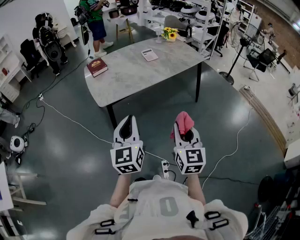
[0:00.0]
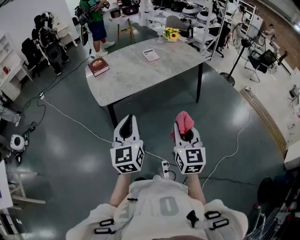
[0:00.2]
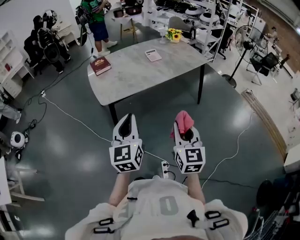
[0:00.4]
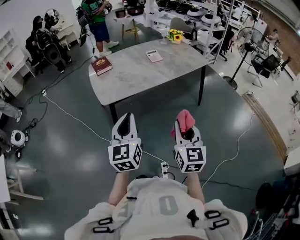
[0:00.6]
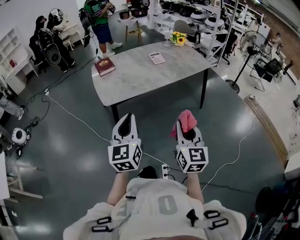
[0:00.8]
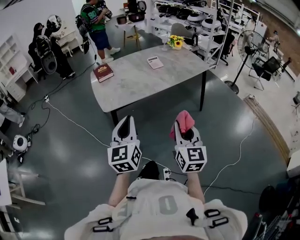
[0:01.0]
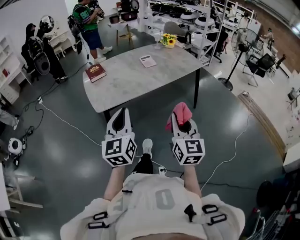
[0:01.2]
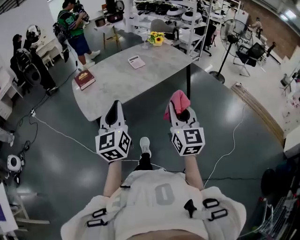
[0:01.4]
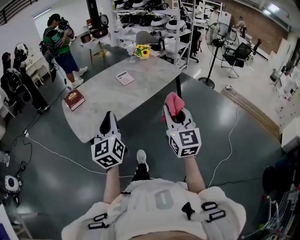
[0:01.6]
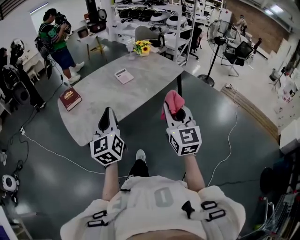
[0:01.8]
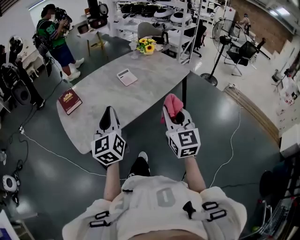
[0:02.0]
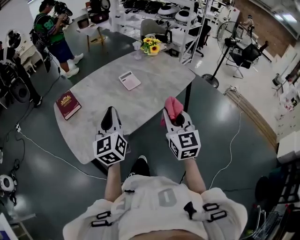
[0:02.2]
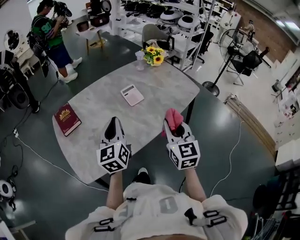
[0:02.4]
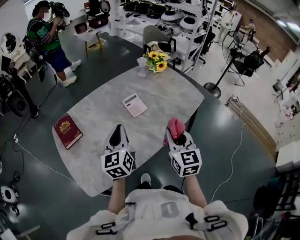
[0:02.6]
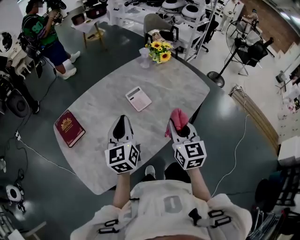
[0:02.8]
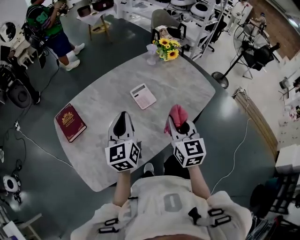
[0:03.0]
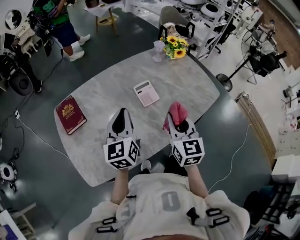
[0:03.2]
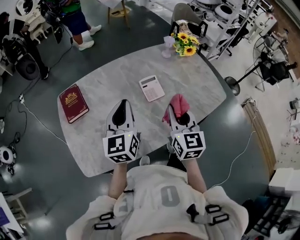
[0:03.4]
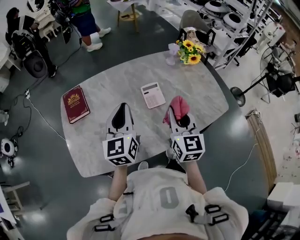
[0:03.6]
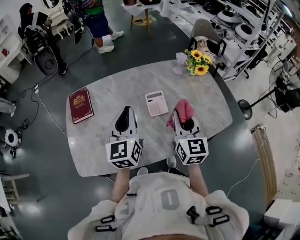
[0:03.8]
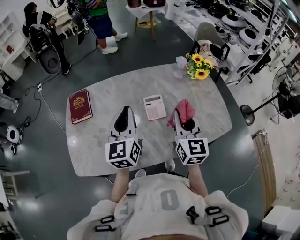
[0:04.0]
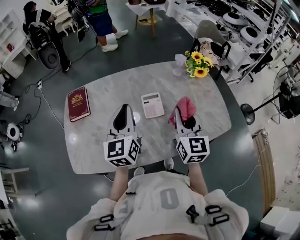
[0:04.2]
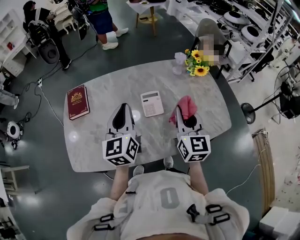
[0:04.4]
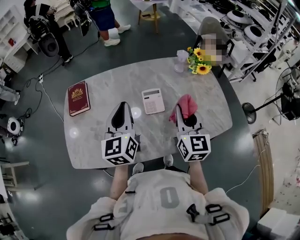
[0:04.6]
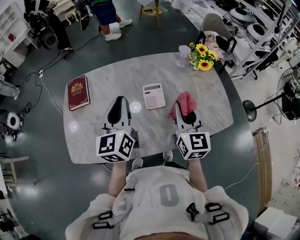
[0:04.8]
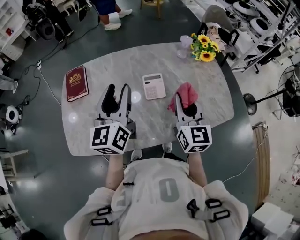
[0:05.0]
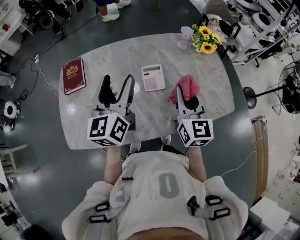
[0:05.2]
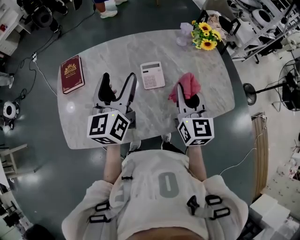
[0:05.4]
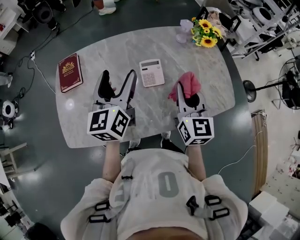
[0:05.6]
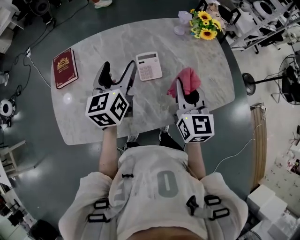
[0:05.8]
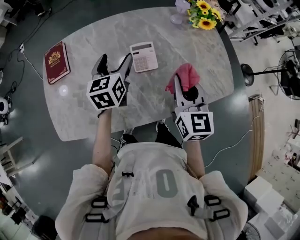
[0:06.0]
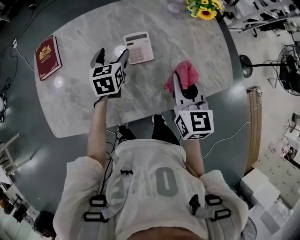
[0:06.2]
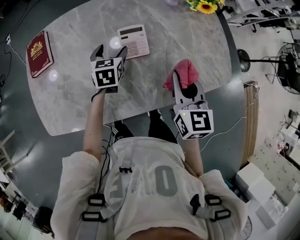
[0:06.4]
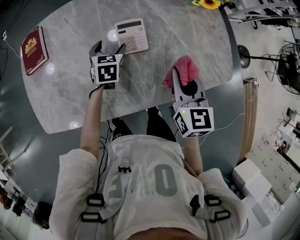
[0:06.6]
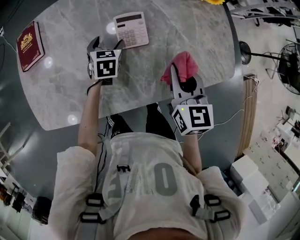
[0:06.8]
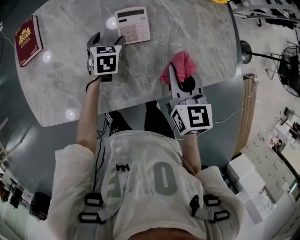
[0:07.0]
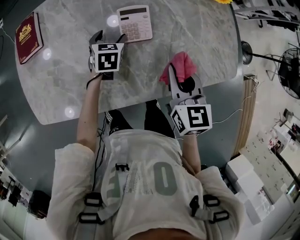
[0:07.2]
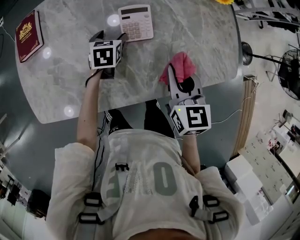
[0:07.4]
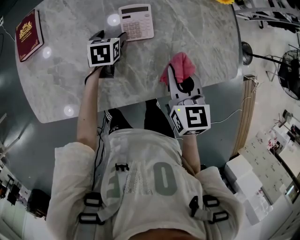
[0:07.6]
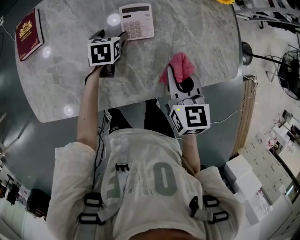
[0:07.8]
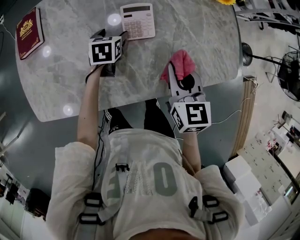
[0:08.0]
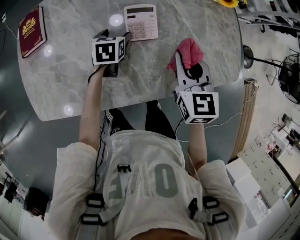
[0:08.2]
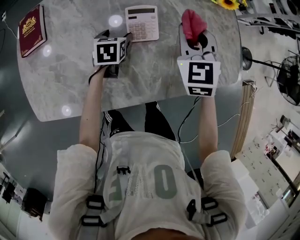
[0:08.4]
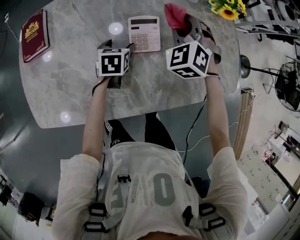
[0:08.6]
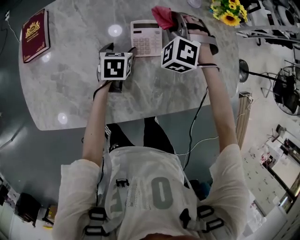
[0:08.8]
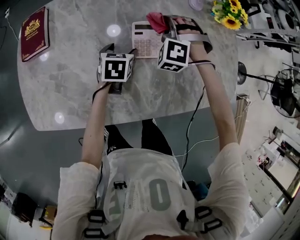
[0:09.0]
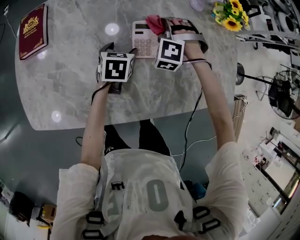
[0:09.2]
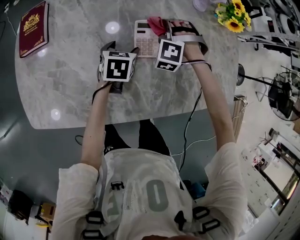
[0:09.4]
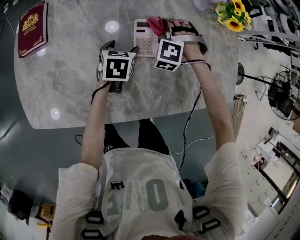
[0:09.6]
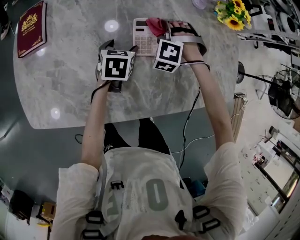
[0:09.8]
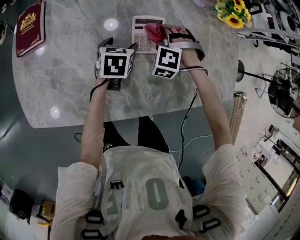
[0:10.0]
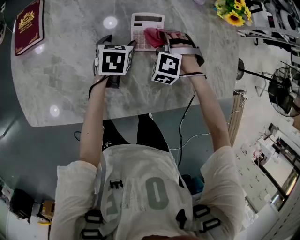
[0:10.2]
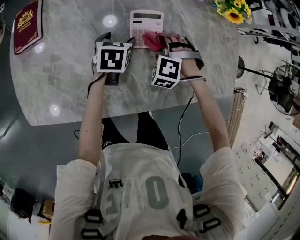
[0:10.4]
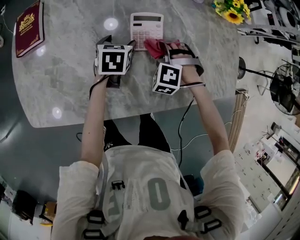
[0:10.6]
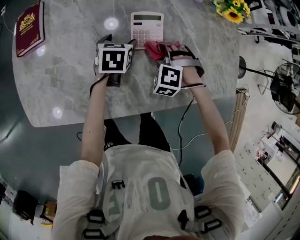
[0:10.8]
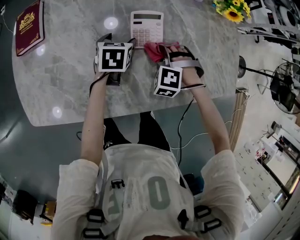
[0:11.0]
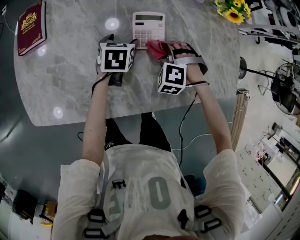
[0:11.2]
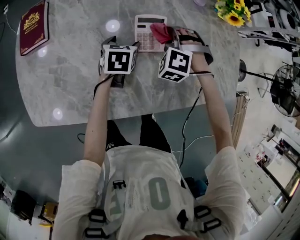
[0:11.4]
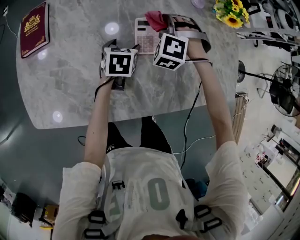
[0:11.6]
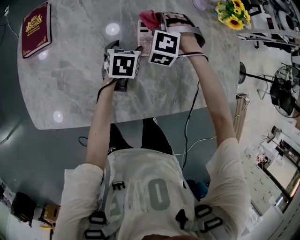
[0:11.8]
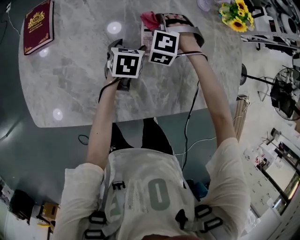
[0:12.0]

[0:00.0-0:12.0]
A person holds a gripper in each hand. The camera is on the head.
0:00.0 to 0:01.6: The right gripper is displaced forward and upward by roughly 15 cm. Meanwhile the left gripper travels forward by some 15 cm.
0:01.6 to 0:03.0: The pair of grippers is taken forward, approximately 50 cm. The right gripper changes its angle by about 20 degrees.
0:03.0 to 0:04.4: The left gripper heads to the right, covering approximately 5 cm, and swivels approximately 20 degrees. The right gripper shifts about 15 cm forward and to the right.
0:04.4 to 0:06.0: The left gripper travels downward and forward by some 15 cm, turns by approximately 20 degrees, and opens up. The right gripper moves downward, roughly 5 cm.
0:06.0 to 0:07.6: The right gripper goes approximately 10 cm downward. Meanwhile the left gripper shifts about 20 cm downward, and turns by about 30 degrees.
0:07.6 to 0:09.0: The right gripper moves forward and to the left, roughly 25 cm, and rotates around the line of its fingers by about 90 degrees, counterclockwise from behind.
0:09.0 to 0:10.4: The right gripper is displaced backward and downward by some 10 cm.
0:10.4 to 0:12.0: The right gripper shifts roughly 10 cm forward and to the left.

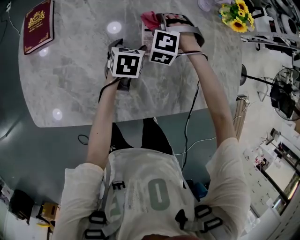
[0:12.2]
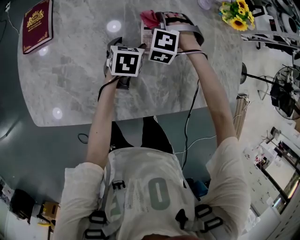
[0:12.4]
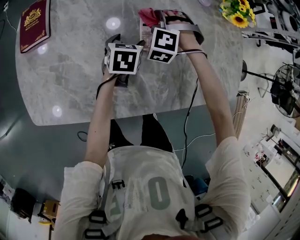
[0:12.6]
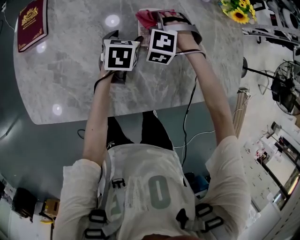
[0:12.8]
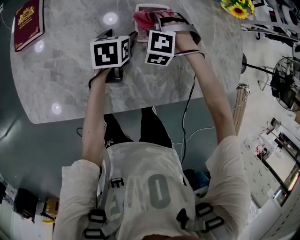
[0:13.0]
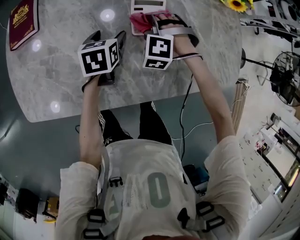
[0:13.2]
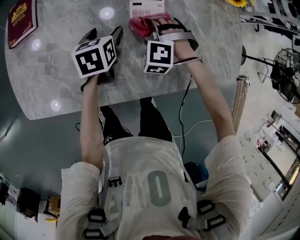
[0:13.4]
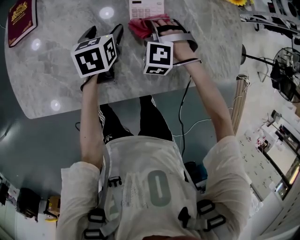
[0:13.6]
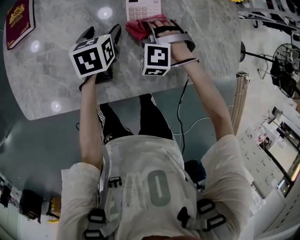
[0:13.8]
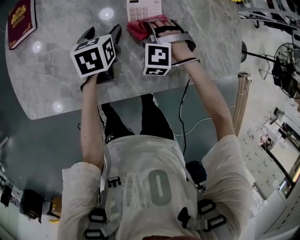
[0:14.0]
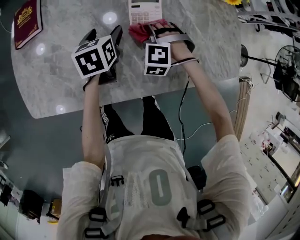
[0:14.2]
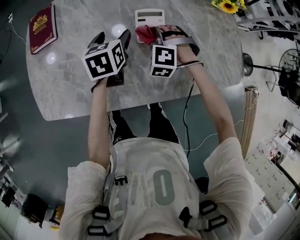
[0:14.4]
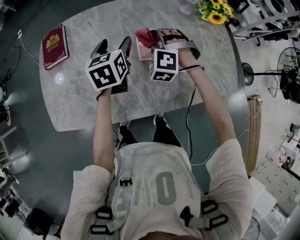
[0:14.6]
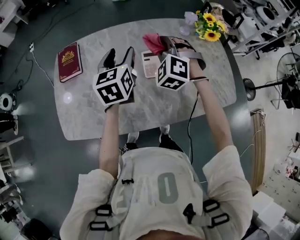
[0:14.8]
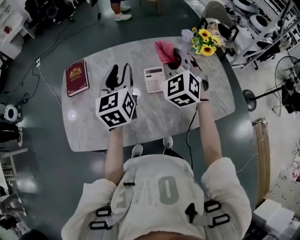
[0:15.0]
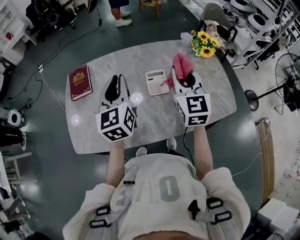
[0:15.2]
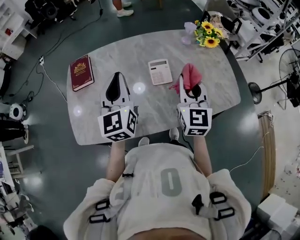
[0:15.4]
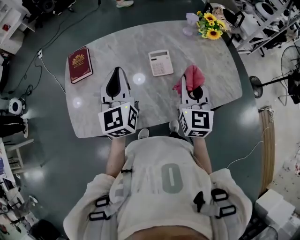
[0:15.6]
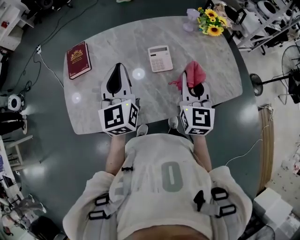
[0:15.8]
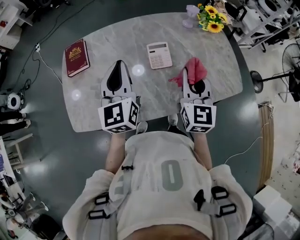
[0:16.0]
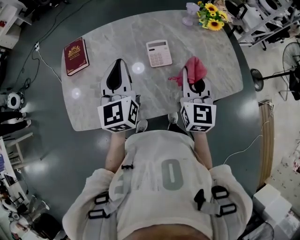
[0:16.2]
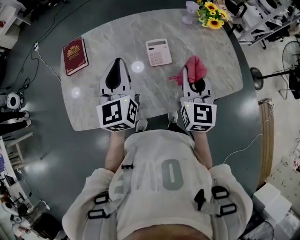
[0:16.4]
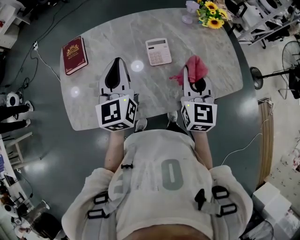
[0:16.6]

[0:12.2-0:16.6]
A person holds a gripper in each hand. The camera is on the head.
0:12.2 to 0:13.6: The right gripper travels backward by about 10 cm. The left gripper changes place by roughly 5 cm.
0:13.6 to 0:15.2: The two grippers go some 35 cm upward. The left gripper angles its fingers upward, by approximately 40 degrees, and closes its fingers, while the right gripper rotates around the line of its fingers by some 70 degrees, clockwise from behind.
0:15.2 to 0:16.6: The right gripper heads downward and backward, covering roughly 10 cm.

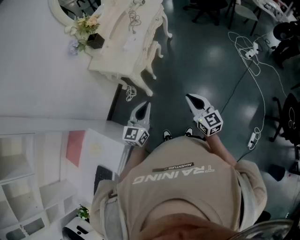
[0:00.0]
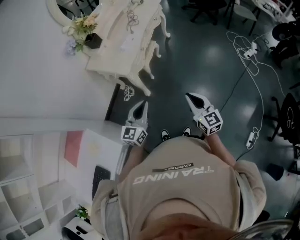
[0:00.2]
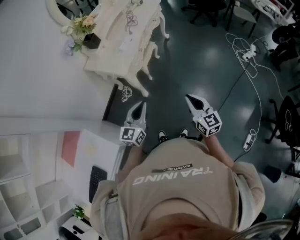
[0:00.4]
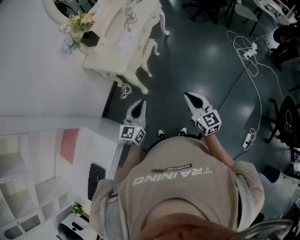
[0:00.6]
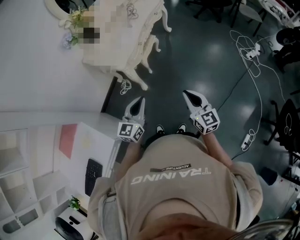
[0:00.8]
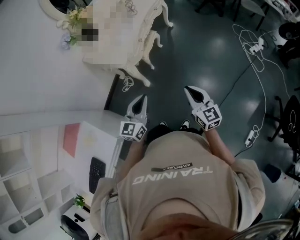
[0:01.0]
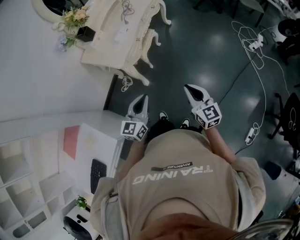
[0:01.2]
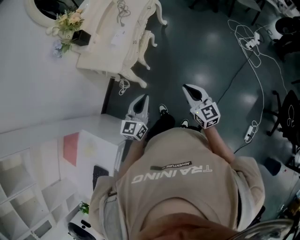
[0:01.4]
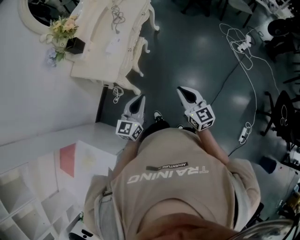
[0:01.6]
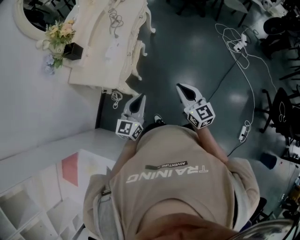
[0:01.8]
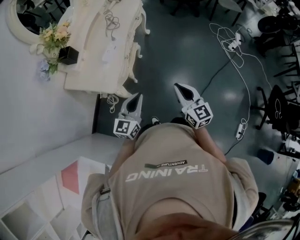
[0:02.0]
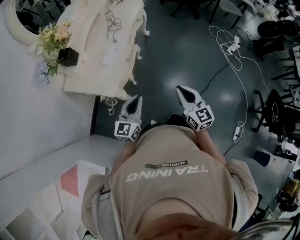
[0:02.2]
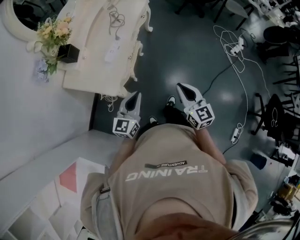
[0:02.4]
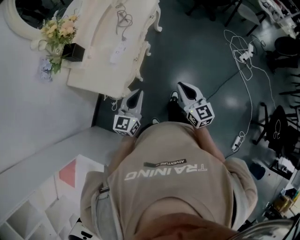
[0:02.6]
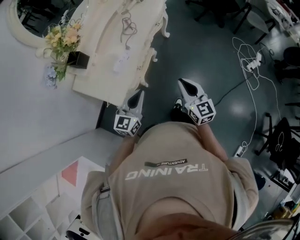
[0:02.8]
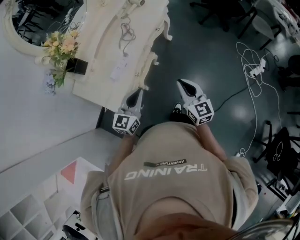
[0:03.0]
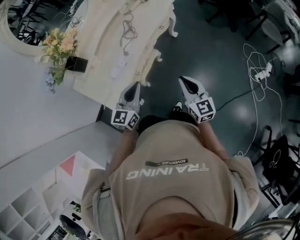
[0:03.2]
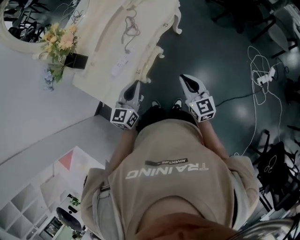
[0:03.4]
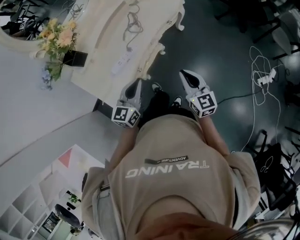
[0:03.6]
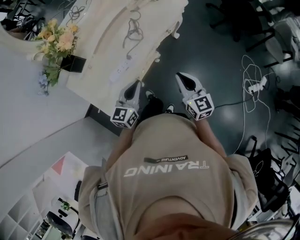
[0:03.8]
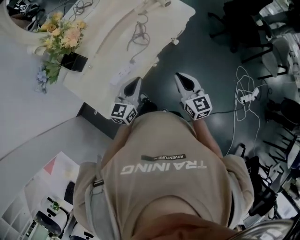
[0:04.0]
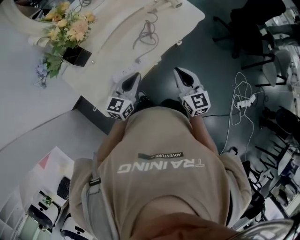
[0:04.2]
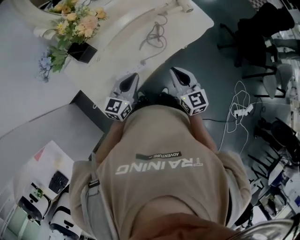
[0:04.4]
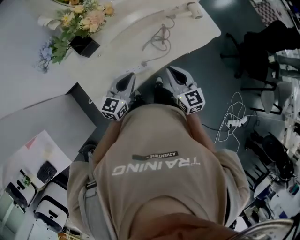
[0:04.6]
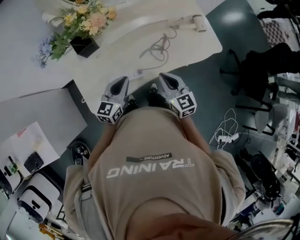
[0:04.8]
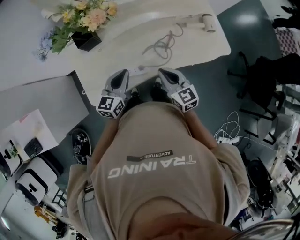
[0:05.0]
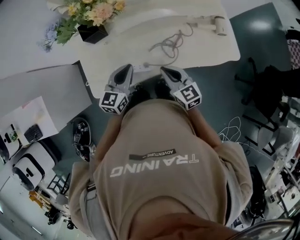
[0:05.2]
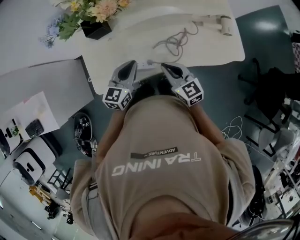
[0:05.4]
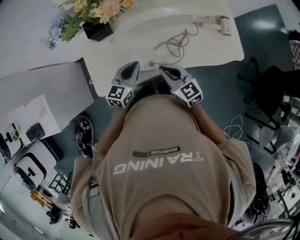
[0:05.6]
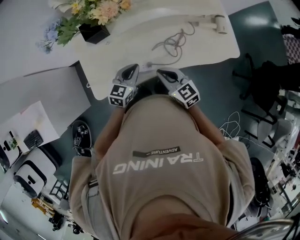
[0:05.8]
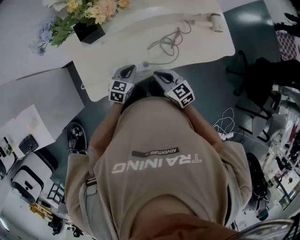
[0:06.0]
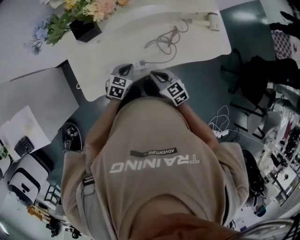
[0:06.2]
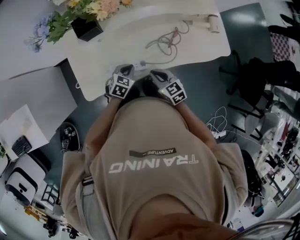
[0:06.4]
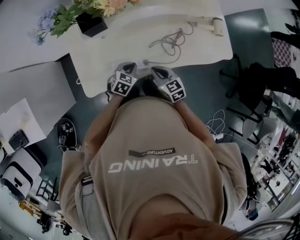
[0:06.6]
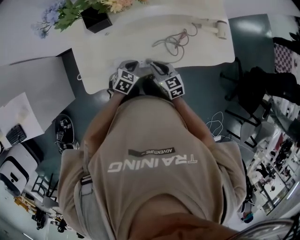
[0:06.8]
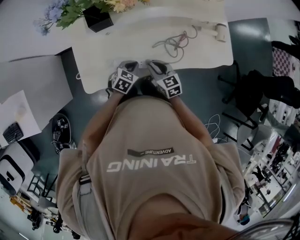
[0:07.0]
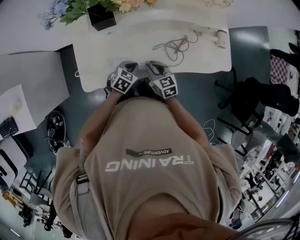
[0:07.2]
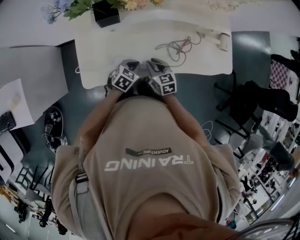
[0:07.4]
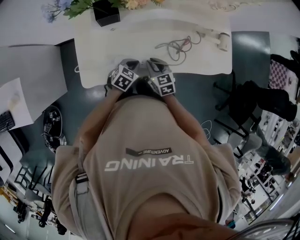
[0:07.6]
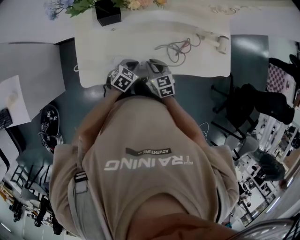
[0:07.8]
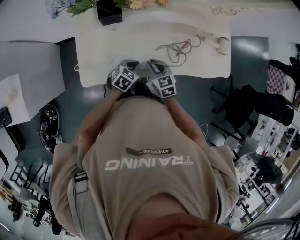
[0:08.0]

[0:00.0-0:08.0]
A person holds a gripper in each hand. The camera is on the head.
0:00.0 to 0:01.6: Both grippers travel together forward, about 15 cm.
0:01.6 to 0:03.2: The two grippers go about 40 cm forward.
0:03.2 to 0:04.8: The left gripper ends up approximately 25 cm from where it was, and rotates some 30 degrees, while the right gripper ends up approximately 35 cm from where it was, and rotates about 40 degrees.
0:04.8 to 0:06.4: Both grippers move downward, approximately 15 cm. The left gripper tips its fingers downward by roughly 30 degrees; the right gripper swivels about 30 degrees.
0:06.4 to 0:08.0: The right gripper heads forward, covering approximately 5 cm.
